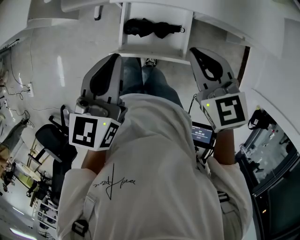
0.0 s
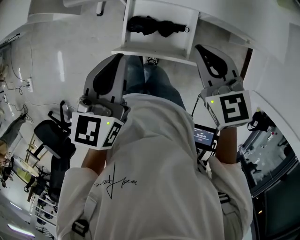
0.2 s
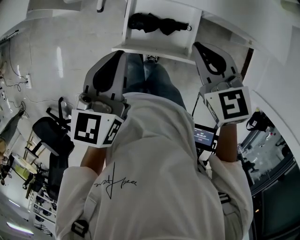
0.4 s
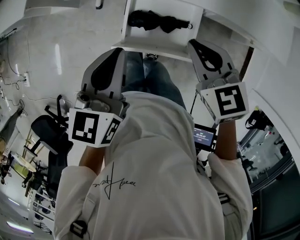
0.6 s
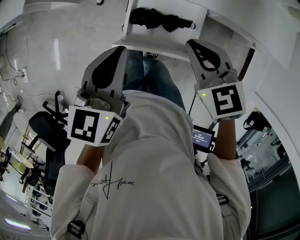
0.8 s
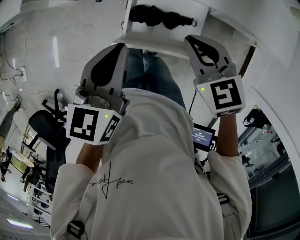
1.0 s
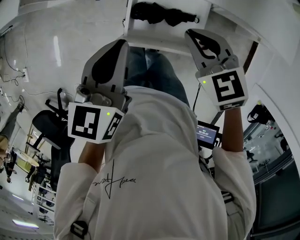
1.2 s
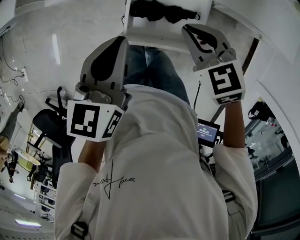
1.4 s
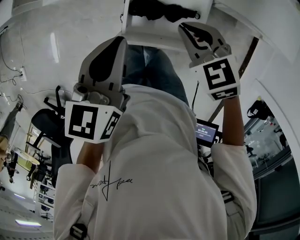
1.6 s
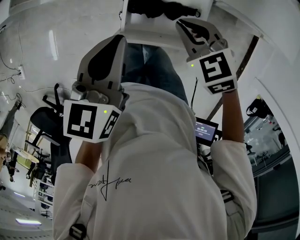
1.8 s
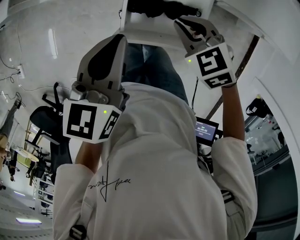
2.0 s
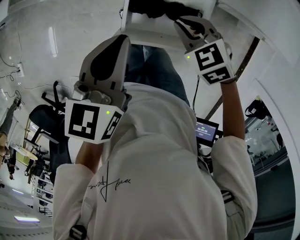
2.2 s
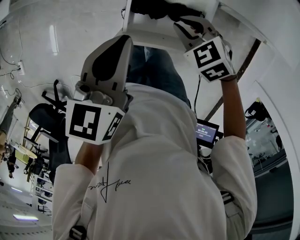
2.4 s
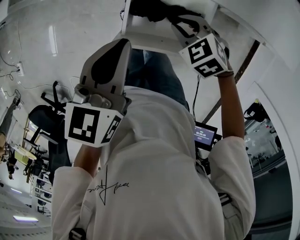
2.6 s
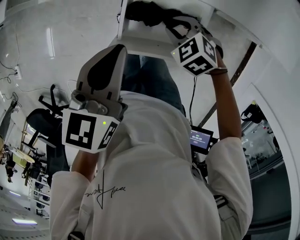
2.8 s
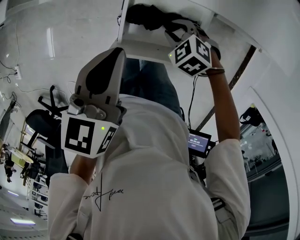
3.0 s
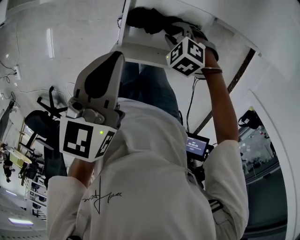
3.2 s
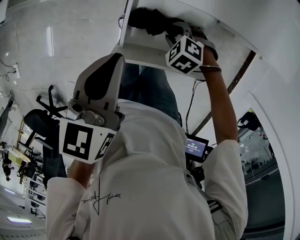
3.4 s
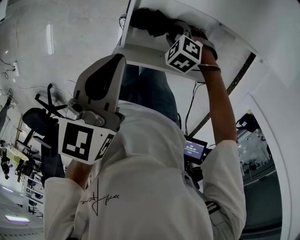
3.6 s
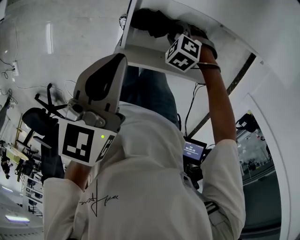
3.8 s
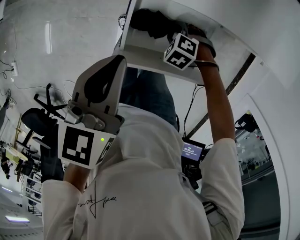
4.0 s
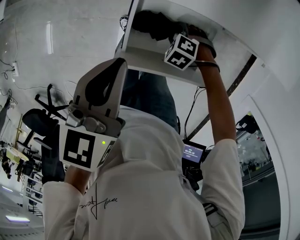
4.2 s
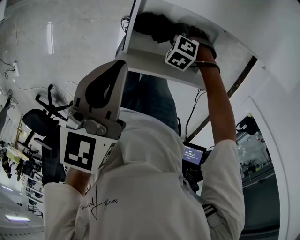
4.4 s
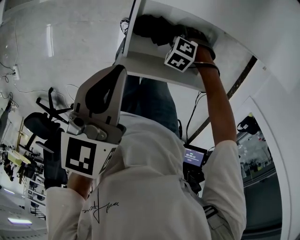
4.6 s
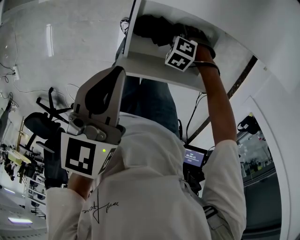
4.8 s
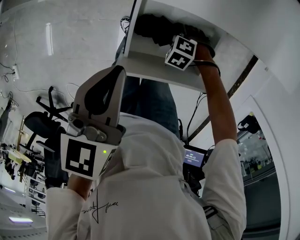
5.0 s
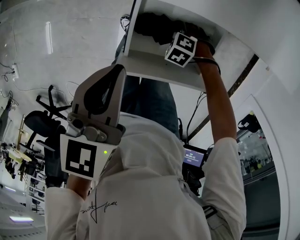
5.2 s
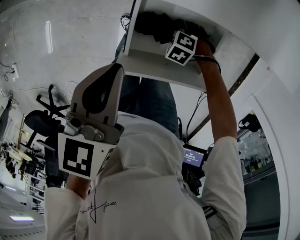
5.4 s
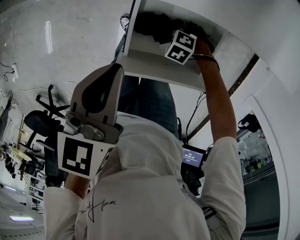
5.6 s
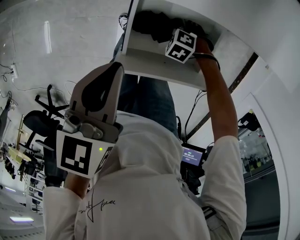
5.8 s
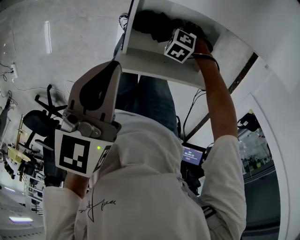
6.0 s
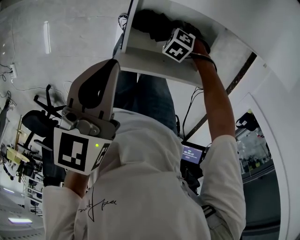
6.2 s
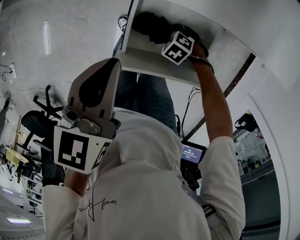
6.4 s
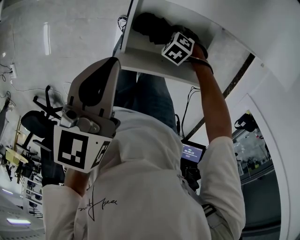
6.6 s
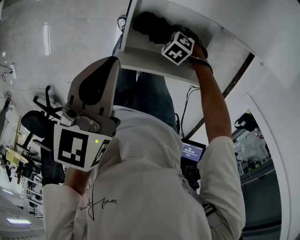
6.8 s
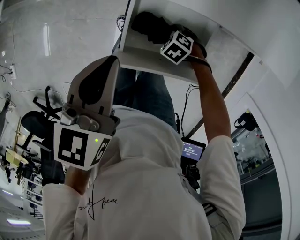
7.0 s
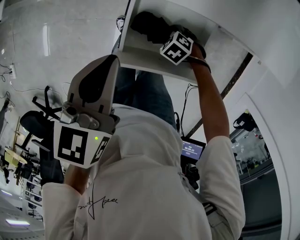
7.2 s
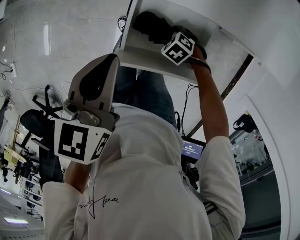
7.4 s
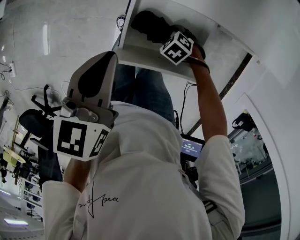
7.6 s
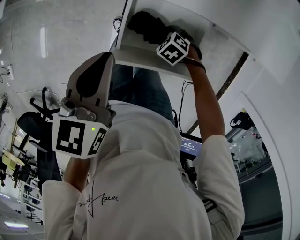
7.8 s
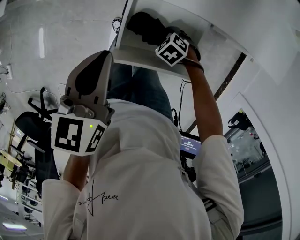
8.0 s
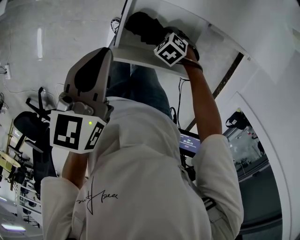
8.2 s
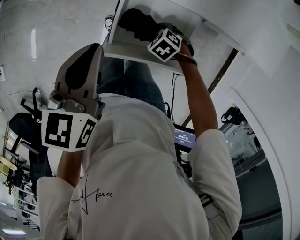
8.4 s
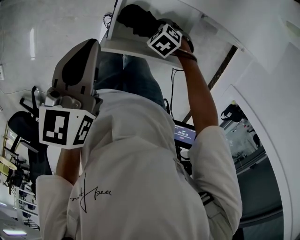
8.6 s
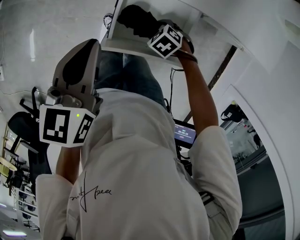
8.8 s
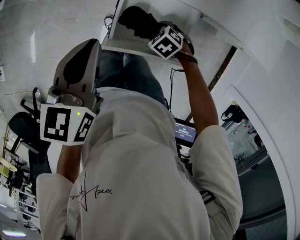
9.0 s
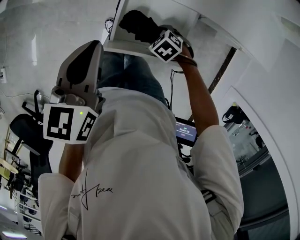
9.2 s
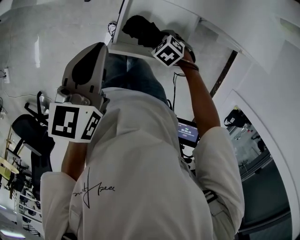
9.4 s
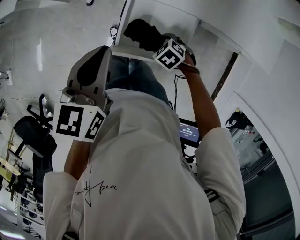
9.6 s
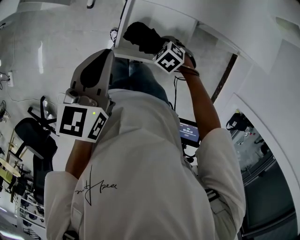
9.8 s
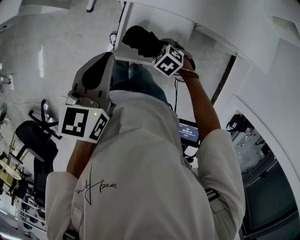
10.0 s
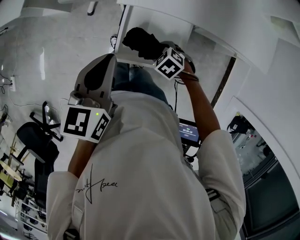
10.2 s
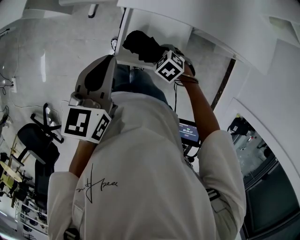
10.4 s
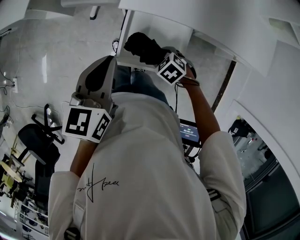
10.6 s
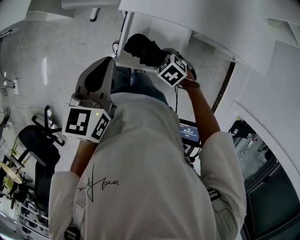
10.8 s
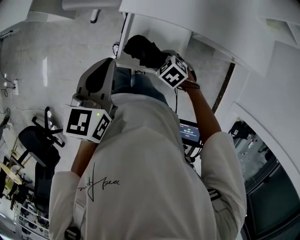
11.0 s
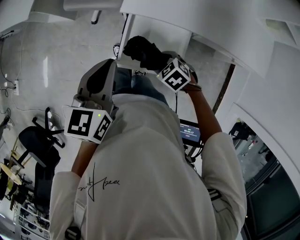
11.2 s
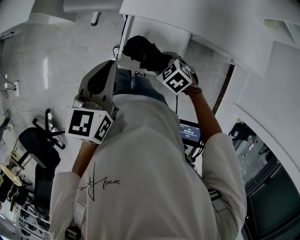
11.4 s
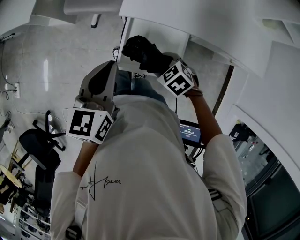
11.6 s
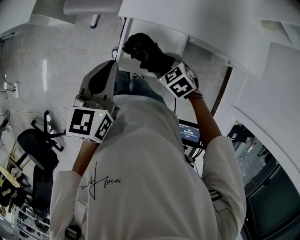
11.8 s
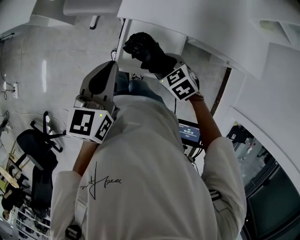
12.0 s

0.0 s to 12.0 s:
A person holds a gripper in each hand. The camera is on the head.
0.0 to 1.6 s: The right gripper moves downward, to the left and forward, some 15 cm, and turns by roughly 20 degrees. Meanwhile the left gripper goes some 5 cm downward.
1.6 to 3.0 s: The right gripper is displaced downward by roughly 15 cm, rotates approximately 20 degrees, and opens up.
3.0 to 4.4 s: The right gripper shifts roughly 10 cm downward, rotates some 20 degrees, and opens up.
4.4 to 7.6 s: The grippers move only a little.
7.6 to 9.0 s: The right gripper shifts about 5 cm upward.
9.0 to 10.4 s: The right gripper shifts roughly 5 cm upward.
10.4 to 12.0 s: The right gripper is displaced upward by about 10 cm.

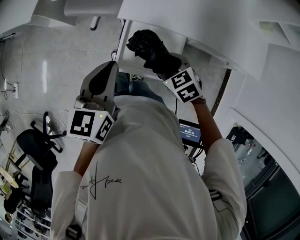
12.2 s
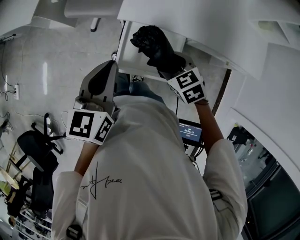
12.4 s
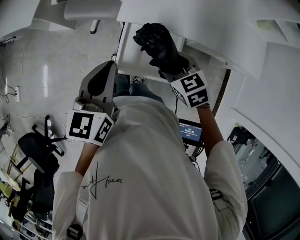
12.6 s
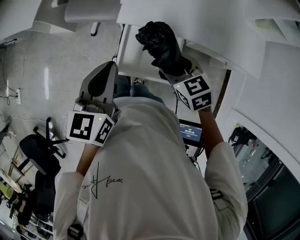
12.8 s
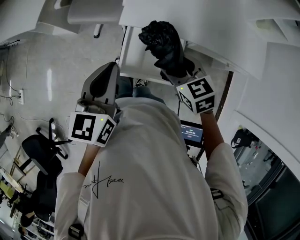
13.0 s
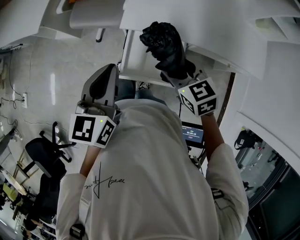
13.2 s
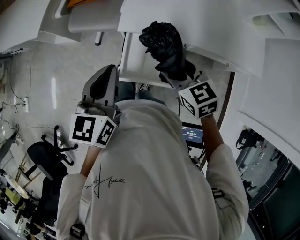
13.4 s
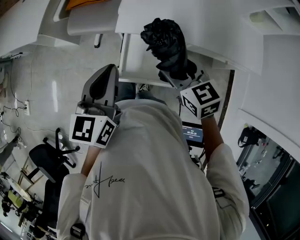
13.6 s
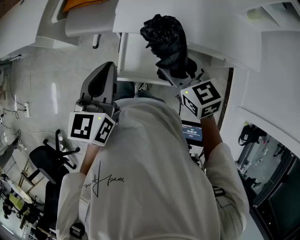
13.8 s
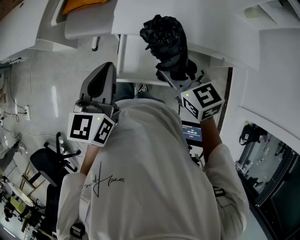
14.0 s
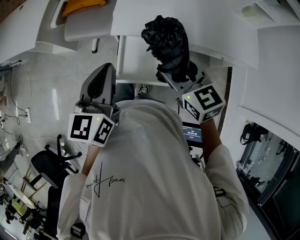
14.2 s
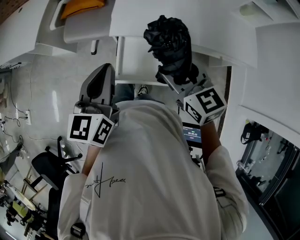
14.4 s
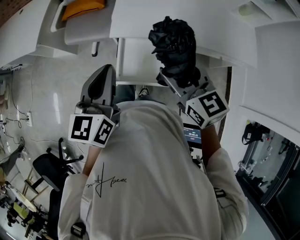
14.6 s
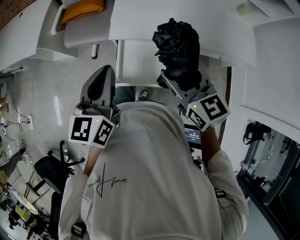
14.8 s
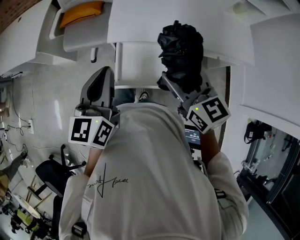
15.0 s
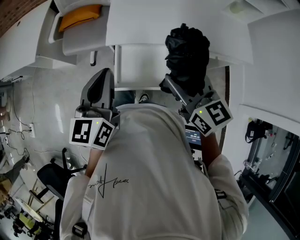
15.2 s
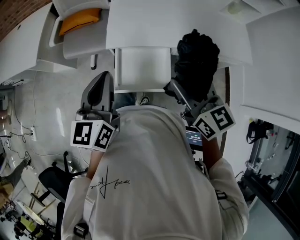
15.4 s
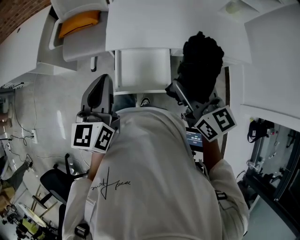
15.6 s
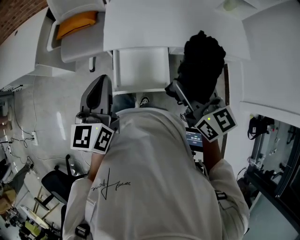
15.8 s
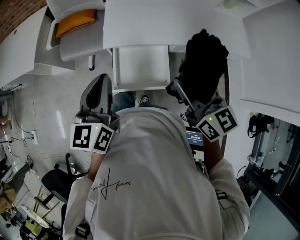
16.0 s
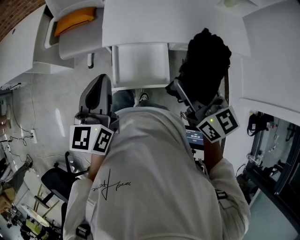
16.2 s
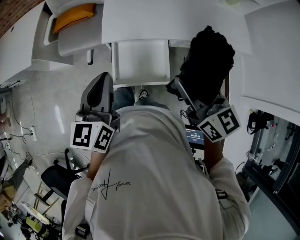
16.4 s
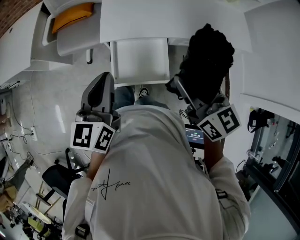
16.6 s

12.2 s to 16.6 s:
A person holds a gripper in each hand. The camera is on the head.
12.2 to 13.6 s: The right gripper travels upward by roughly 15 cm, and rotates about 30 degrees.
13.6 to 15.2 s: The right gripper shifts approximately 10 cm upward and backward, and turns by roughly 20 degrees.
15.2 to 16.6 s: The grippers make only small movements.

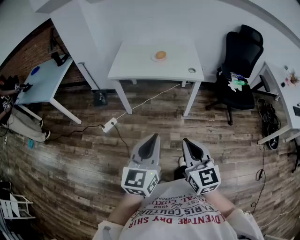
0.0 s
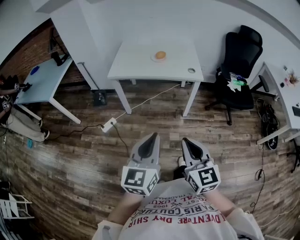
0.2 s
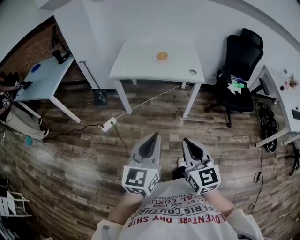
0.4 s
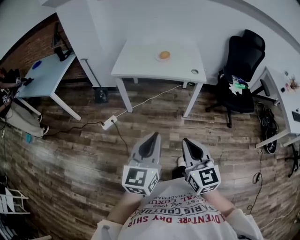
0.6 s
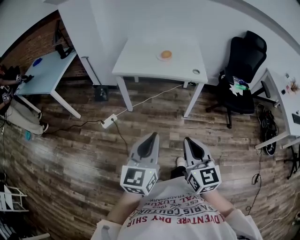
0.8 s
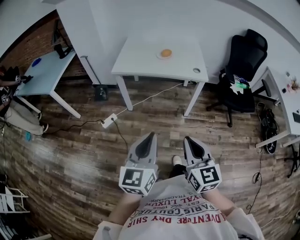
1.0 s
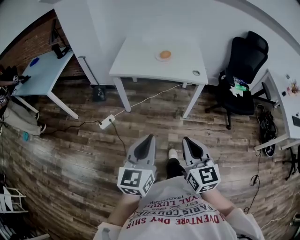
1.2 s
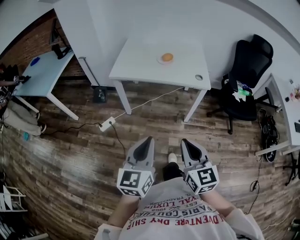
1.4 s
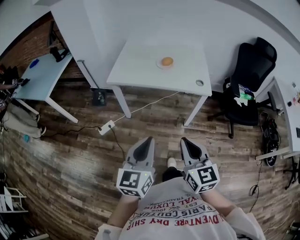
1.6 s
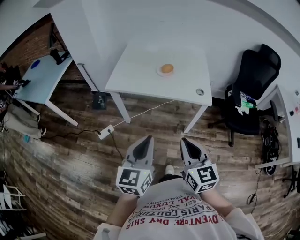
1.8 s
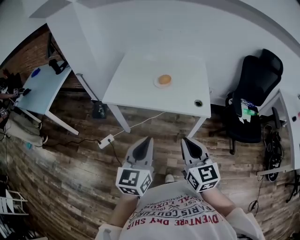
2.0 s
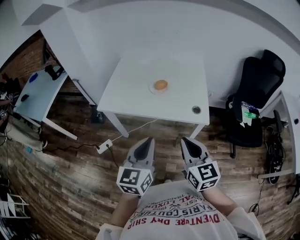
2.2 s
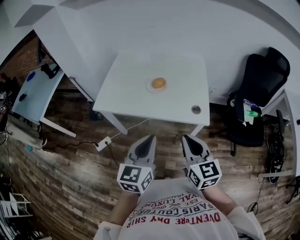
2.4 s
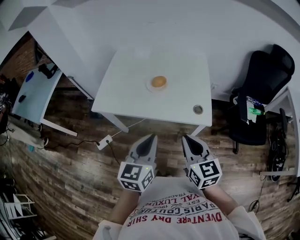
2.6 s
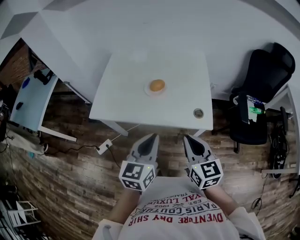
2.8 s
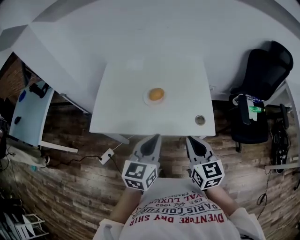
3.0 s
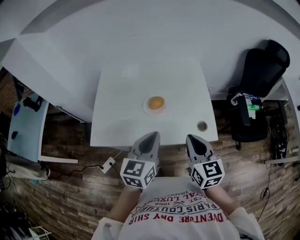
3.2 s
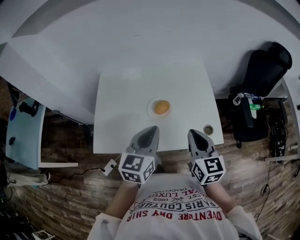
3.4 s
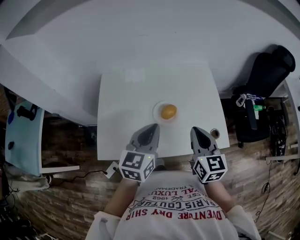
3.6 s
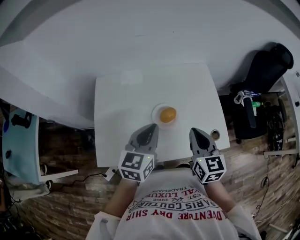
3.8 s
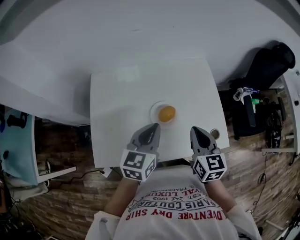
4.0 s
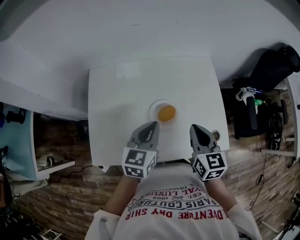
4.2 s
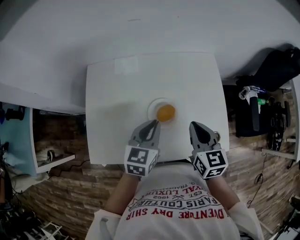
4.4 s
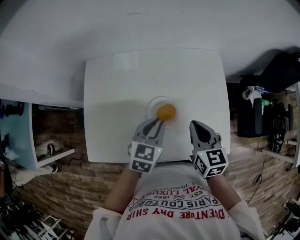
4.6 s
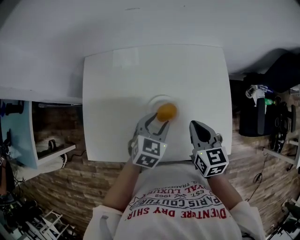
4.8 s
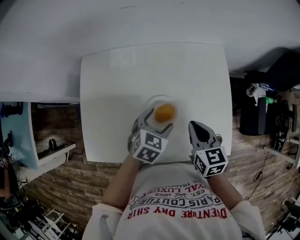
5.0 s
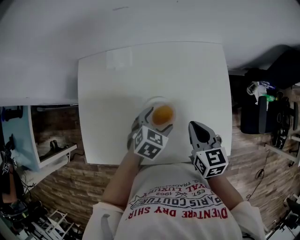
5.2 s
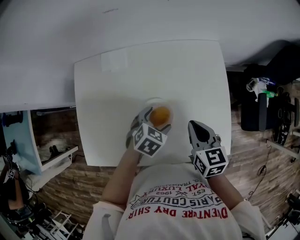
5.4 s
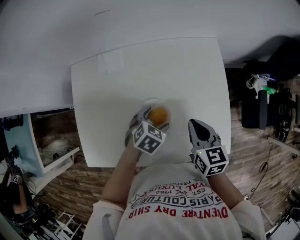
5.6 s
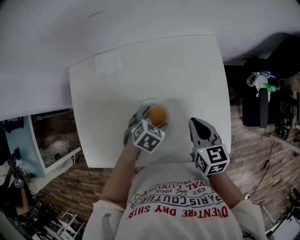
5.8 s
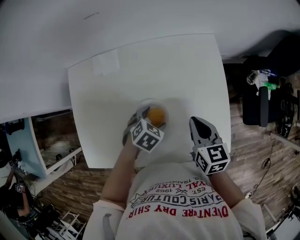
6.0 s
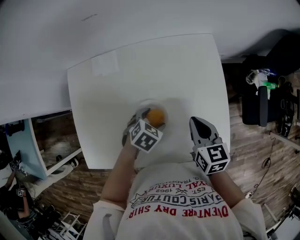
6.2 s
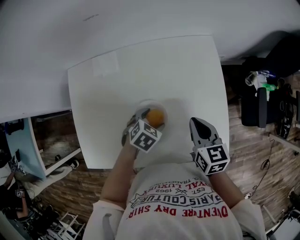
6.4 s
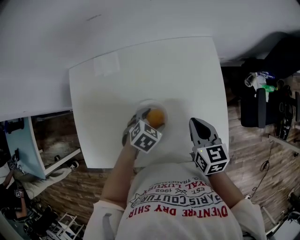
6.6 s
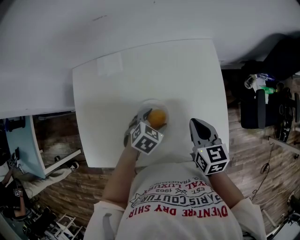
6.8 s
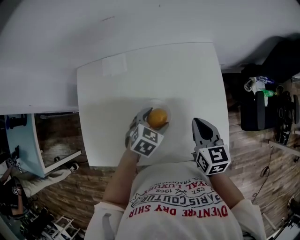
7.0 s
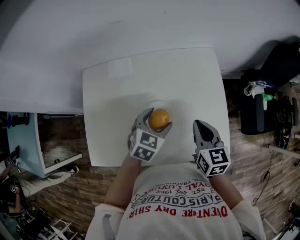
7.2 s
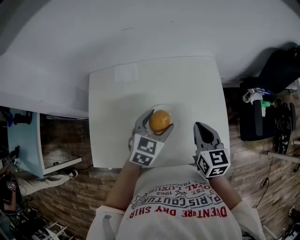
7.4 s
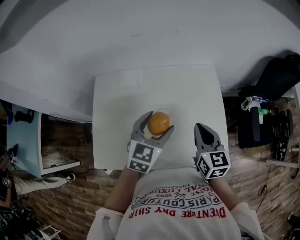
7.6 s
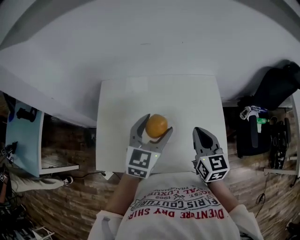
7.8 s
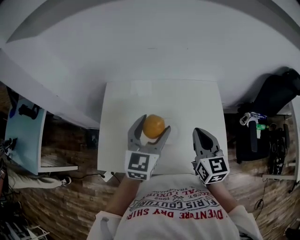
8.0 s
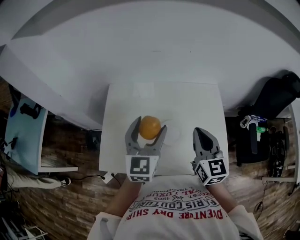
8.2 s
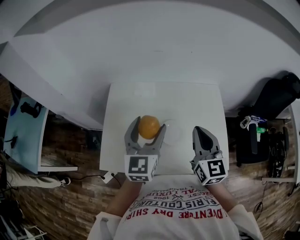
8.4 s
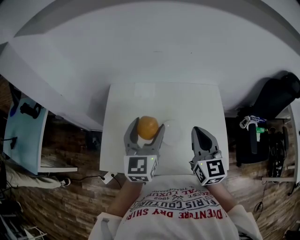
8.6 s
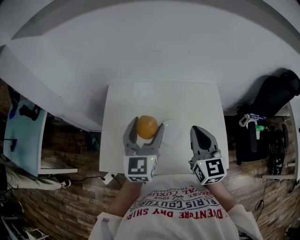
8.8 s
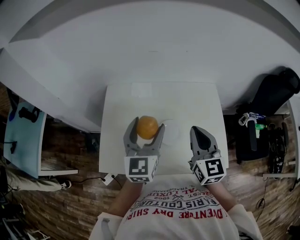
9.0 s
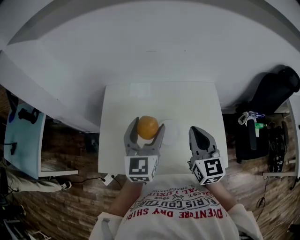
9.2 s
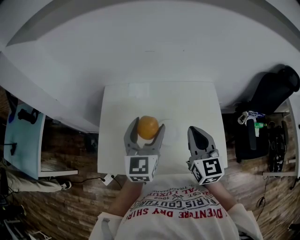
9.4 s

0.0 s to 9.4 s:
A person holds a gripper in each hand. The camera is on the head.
0.0 to 1.6 s: Both grippers travel together forward, roughly 15 cm.
1.6 to 3.2 s: The two grippers travel together, forward, about 40 cm.
3.2 to 4.8 s: The grippers both shift forward and downward by about 25 cm. The left gripper swivels some 30 degrees, and opens up.
4.8 to 6.2 s: The left gripper goes approximately 10 cm downward, swivels some 30 degrees, and opens up. The right gripper moves approximately 10 cm.
6.2 to 7.8 s: The right gripper moves upward, some 15 cm, and swivels approximately 20 degrees, while the left gripper goes roughly 30 cm upward, and tilts its fingers roughly 50 degrees upward.
7.8 to 9.4 s: The right gripper shifts roughly 5 cm upward. The left gripper travels to the left by approximately 5 cm.
